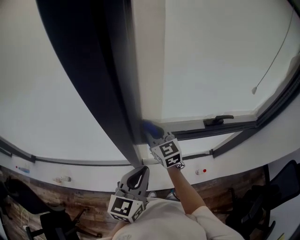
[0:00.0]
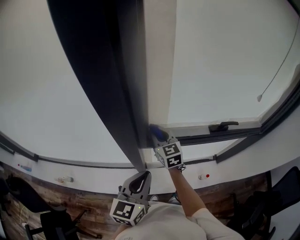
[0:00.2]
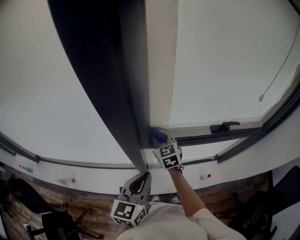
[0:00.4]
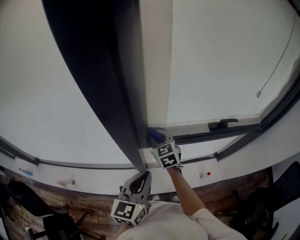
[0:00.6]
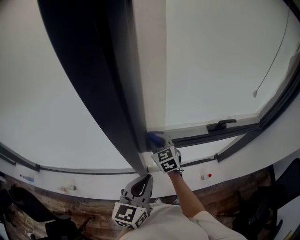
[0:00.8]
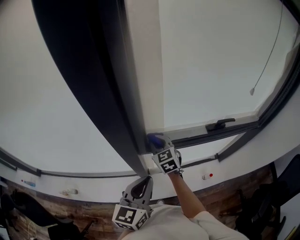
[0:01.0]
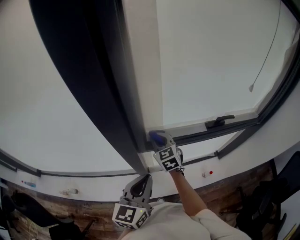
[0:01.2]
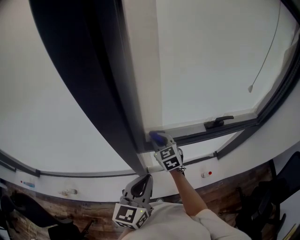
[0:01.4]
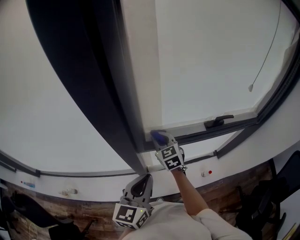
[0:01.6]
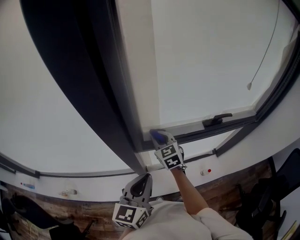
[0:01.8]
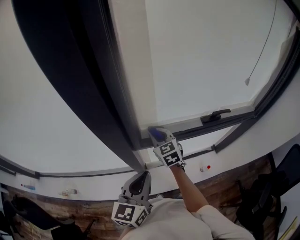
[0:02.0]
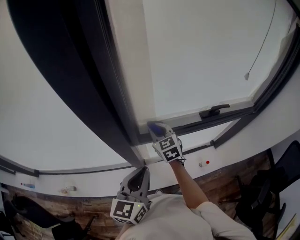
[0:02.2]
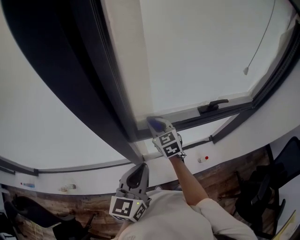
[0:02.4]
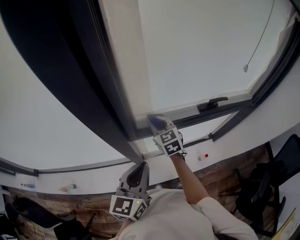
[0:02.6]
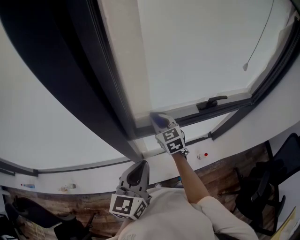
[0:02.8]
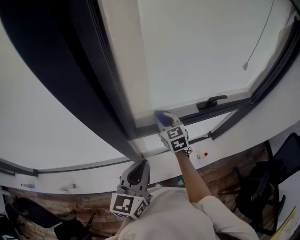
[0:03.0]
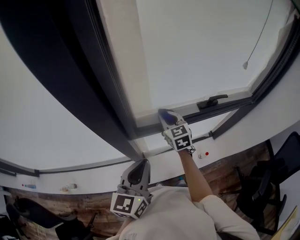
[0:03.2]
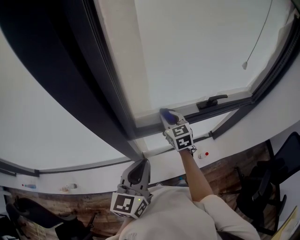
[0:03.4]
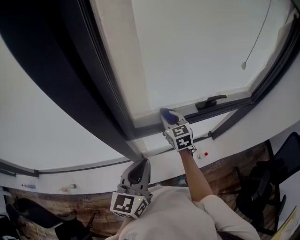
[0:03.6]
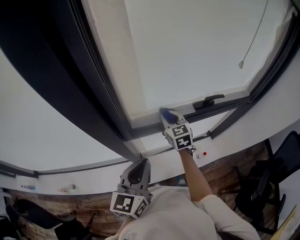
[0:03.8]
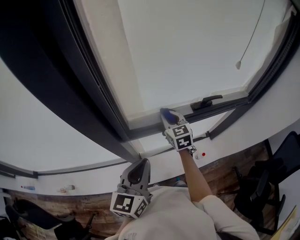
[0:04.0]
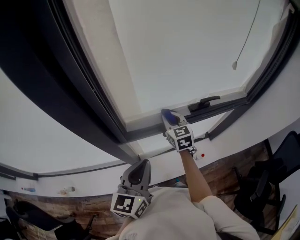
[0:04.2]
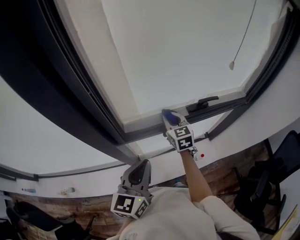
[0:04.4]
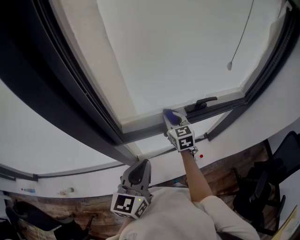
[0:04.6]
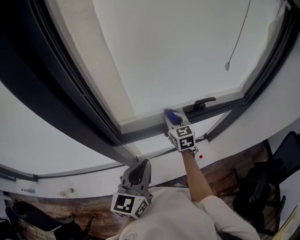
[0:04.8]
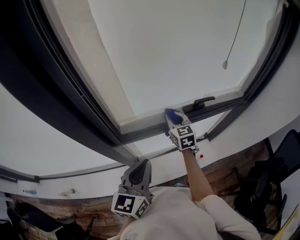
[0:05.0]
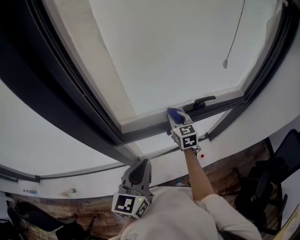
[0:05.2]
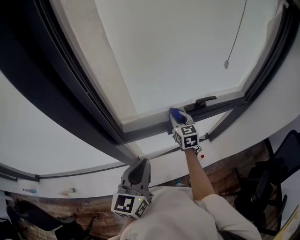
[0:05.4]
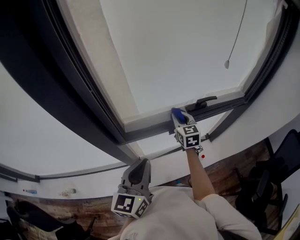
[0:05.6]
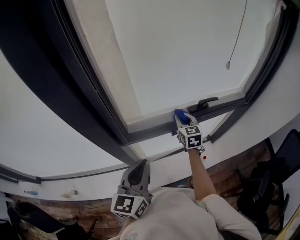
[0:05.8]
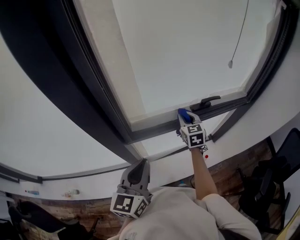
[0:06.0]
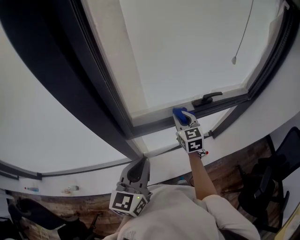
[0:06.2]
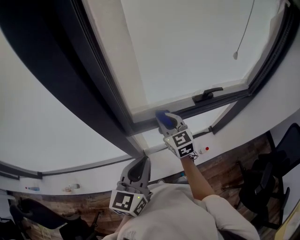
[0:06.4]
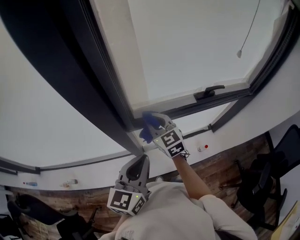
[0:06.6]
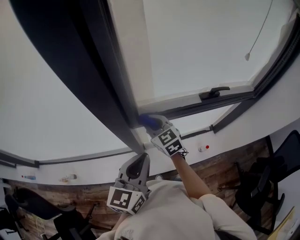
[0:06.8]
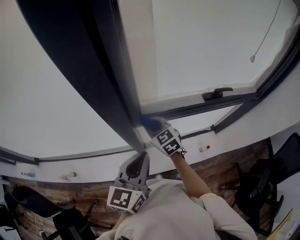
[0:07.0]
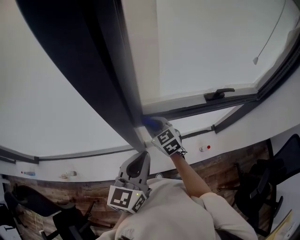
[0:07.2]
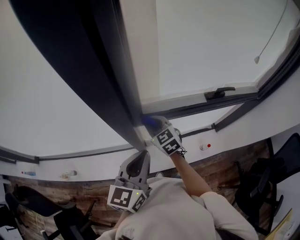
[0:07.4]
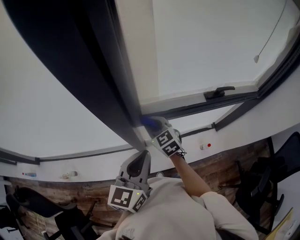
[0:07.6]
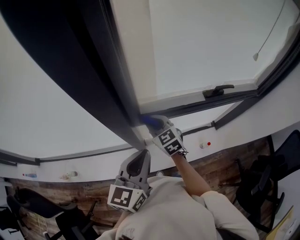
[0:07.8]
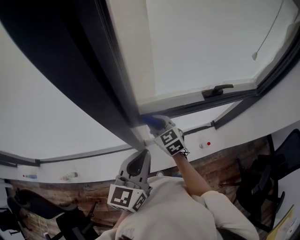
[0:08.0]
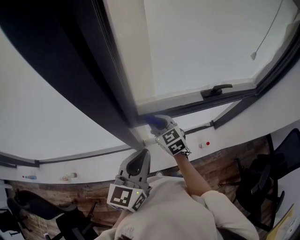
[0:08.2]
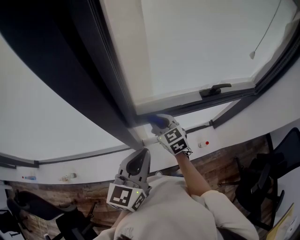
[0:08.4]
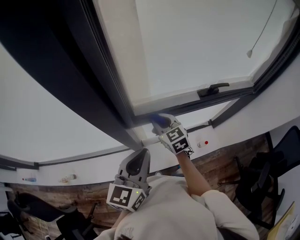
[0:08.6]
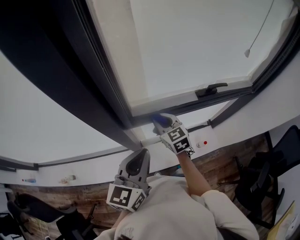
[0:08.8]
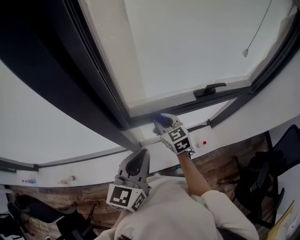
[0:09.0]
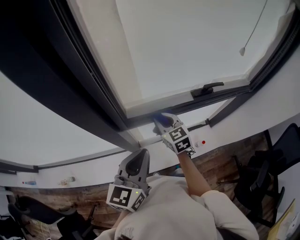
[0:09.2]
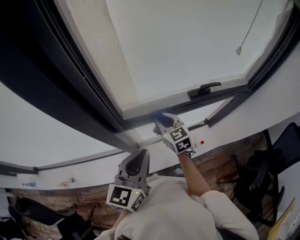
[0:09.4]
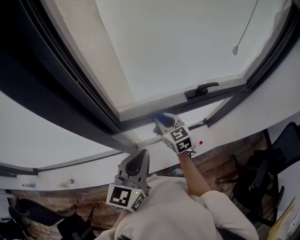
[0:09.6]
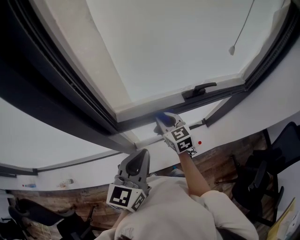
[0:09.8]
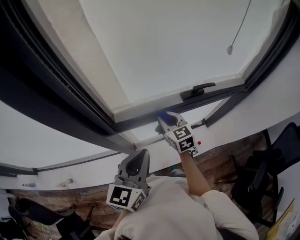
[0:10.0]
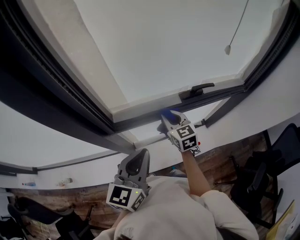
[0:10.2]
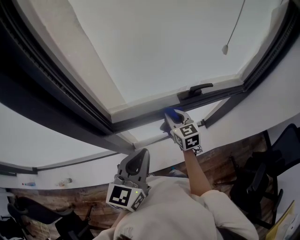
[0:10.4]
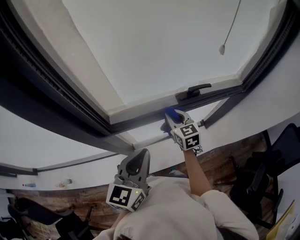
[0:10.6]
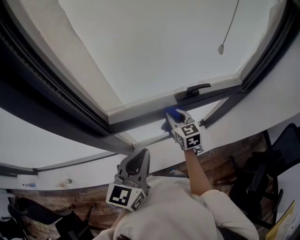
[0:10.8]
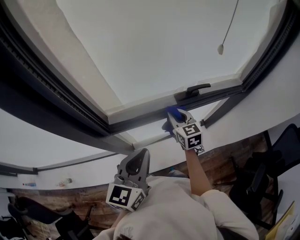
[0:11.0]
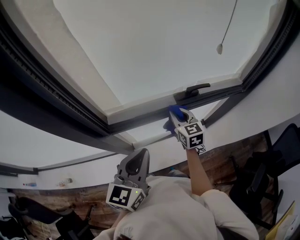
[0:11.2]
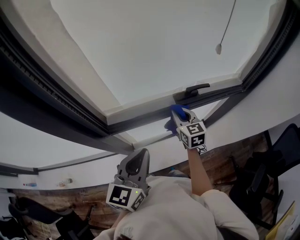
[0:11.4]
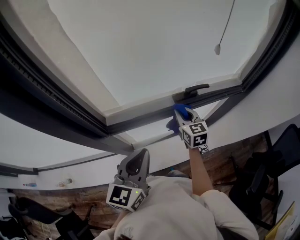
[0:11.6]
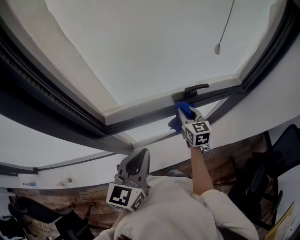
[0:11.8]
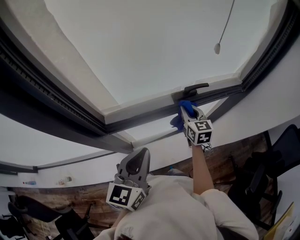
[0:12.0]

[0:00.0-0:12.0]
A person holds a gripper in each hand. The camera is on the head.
0:00.0 to 0:01.6: The right gripper goes approximately 5 cm downward.
0:01.6 to 0:03.0: The right gripper moves to the right, some 5 cm.
0:03.0 to 0:04.4: The left gripper shifts about 5 cm to the right, while the right gripper goes roughly 10 cm to the right.
0:04.4 to 0:06.0: The right gripper moves to the right, approximately 5 cm.
0:06.0 to 0:07.6: The right gripper heads to the left, covering about 25 cm, and turns by some 30 degrees.
0:07.6 to 0:09.0: The right gripper heads to the right, covering roughly 10 cm.
0:09.0 to 0:10.4: The left gripper heads to the right, covering roughly 10 cm; the right gripper travels to the right by approximately 15 cm.
0:10.4 to 0:12.0: The right gripper heads to the right, covering some 10 cm.

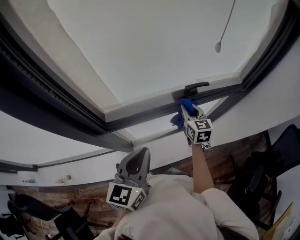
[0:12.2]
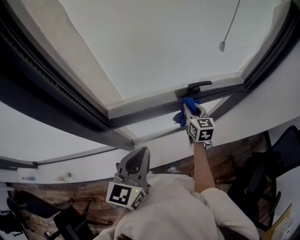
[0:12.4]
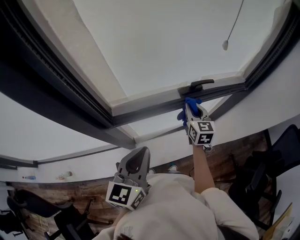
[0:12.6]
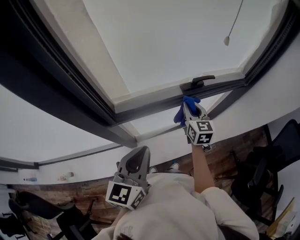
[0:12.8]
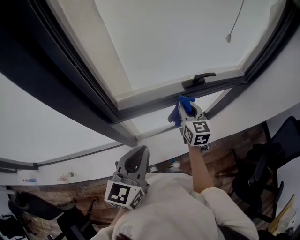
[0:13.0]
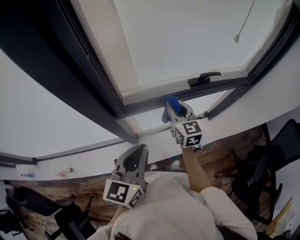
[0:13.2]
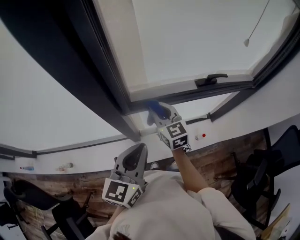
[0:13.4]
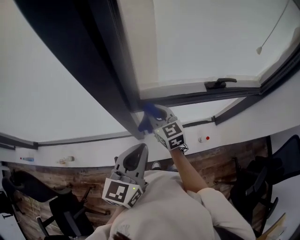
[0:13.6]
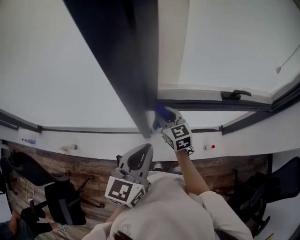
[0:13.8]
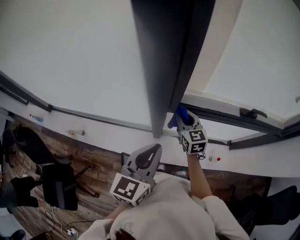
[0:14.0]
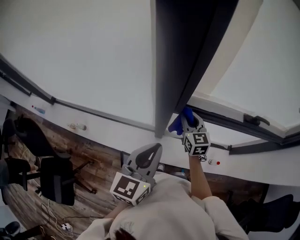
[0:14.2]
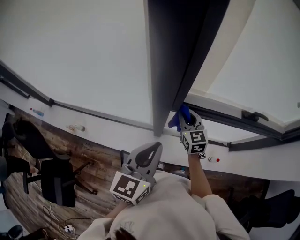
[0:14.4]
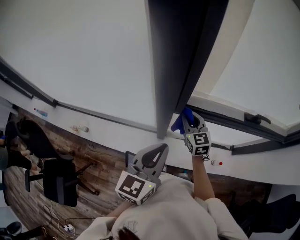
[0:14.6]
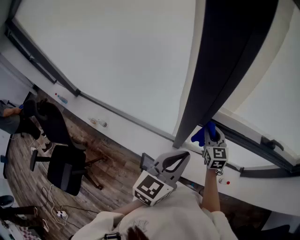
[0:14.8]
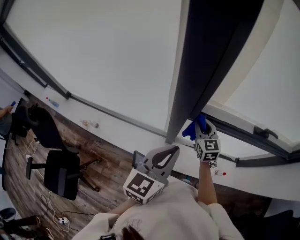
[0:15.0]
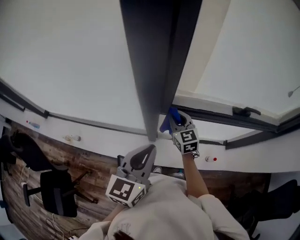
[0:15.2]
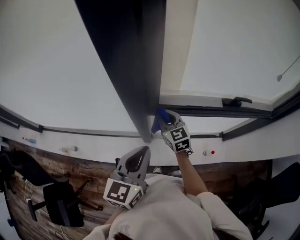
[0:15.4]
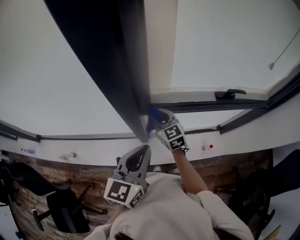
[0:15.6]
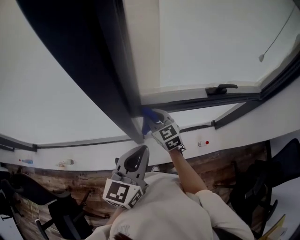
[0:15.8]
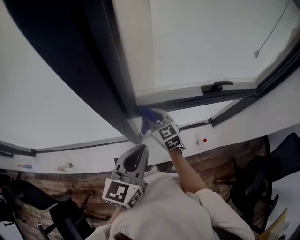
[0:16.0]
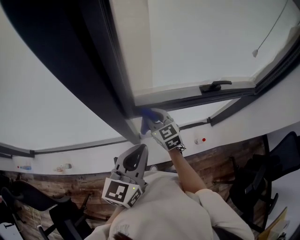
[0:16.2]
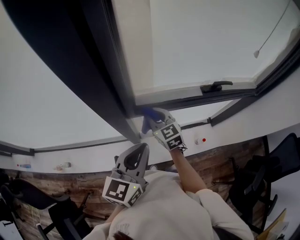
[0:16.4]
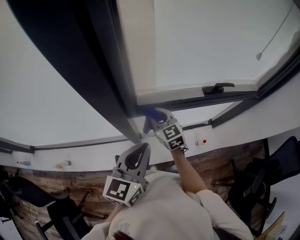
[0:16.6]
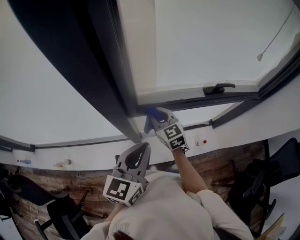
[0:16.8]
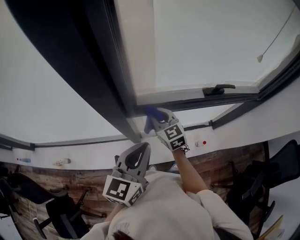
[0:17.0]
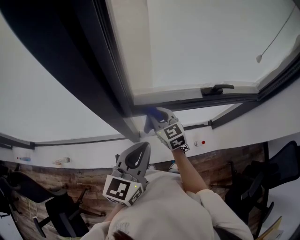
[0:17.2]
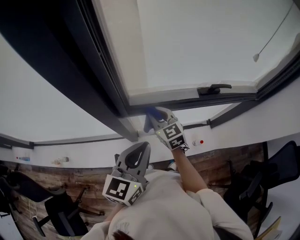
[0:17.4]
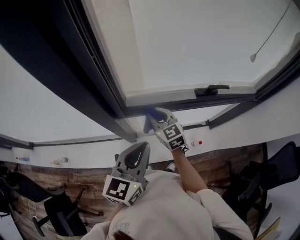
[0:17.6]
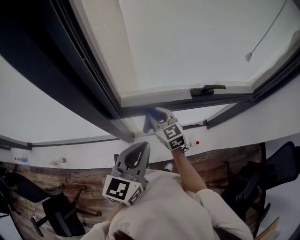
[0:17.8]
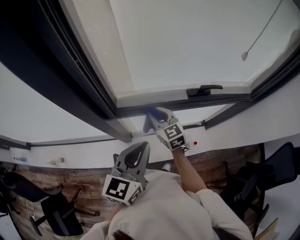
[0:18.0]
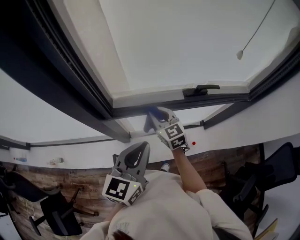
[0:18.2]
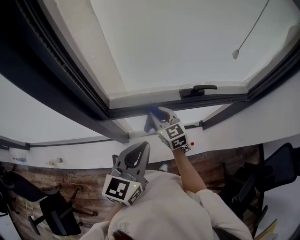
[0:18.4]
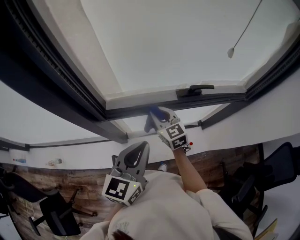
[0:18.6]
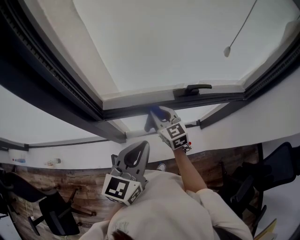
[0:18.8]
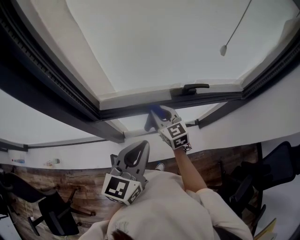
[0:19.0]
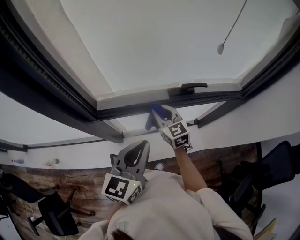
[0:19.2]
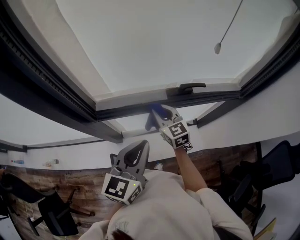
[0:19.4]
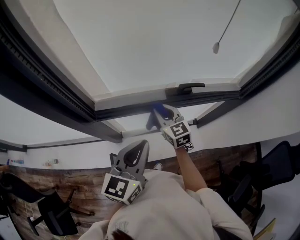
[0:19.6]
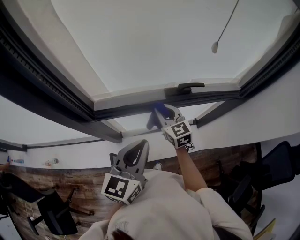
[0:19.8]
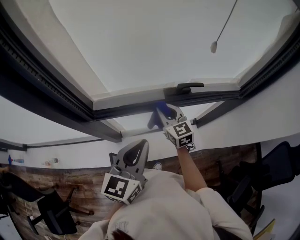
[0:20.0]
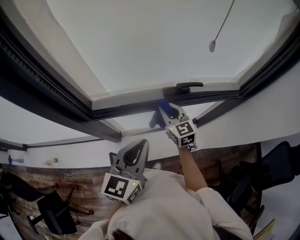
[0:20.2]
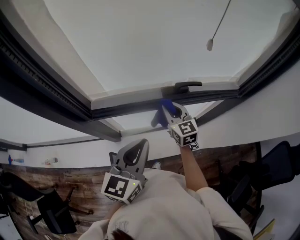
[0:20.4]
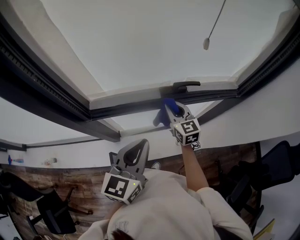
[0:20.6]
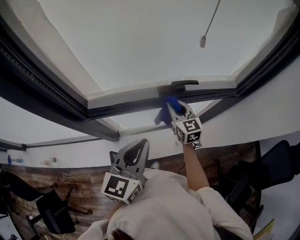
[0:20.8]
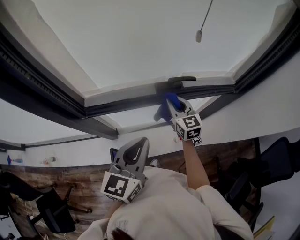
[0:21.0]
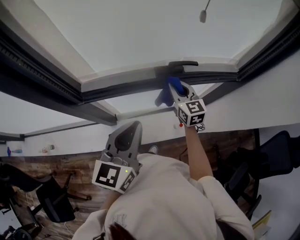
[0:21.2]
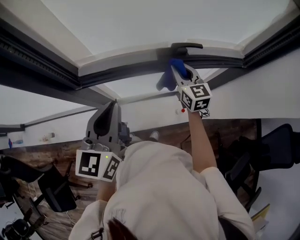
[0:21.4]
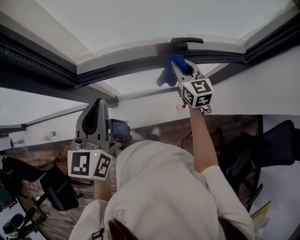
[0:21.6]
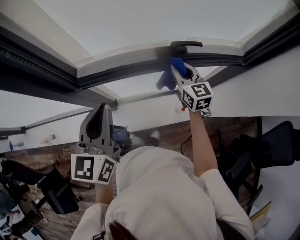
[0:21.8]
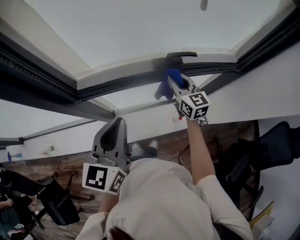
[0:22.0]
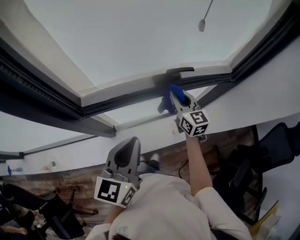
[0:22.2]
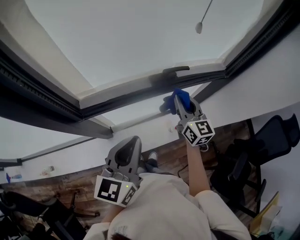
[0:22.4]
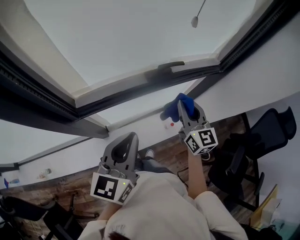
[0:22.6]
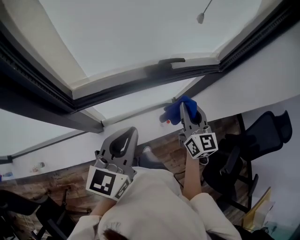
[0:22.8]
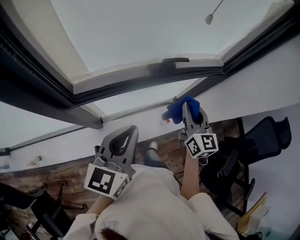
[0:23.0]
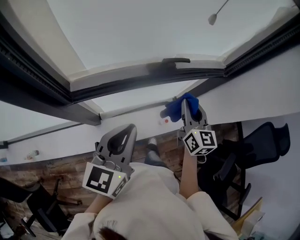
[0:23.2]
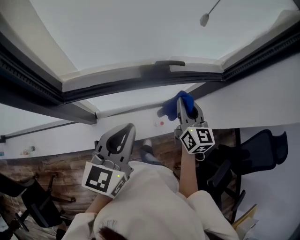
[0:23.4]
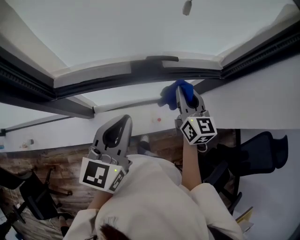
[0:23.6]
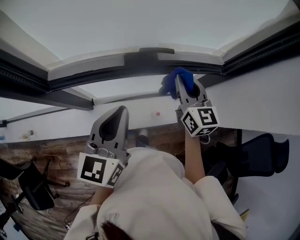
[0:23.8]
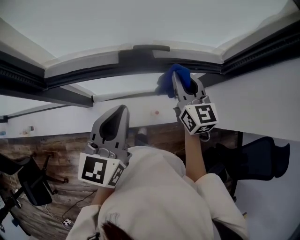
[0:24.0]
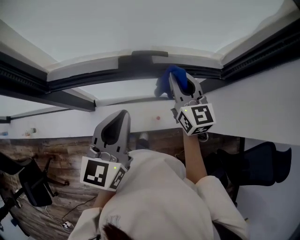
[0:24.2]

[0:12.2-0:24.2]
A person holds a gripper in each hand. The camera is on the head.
0:12.2 to 0:13.8: The left gripper goes approximately 15 cm to the left and backward; the right gripper is displaced to the left by about 35 cm, and changes its angle by about 30 degrees.
0:13.8 to 0:15.2: The grippers make only small movements.
0:15.2 to 0:16.6: Both grippers travel together to the right, roughly 5 cm.
0:16.6 to 0:18.2: Both grippers travel together to the right, about 10 cm.
0:18.2 to 0:19.8: Both grippers travel together to the right, about 10 cm.
0:19.8 to 0:21.2: The right gripper heads to the right, covering roughly 10 cm.
0:21.2 to 0:22.6: The right gripper heads backward and upward, covering roughly 15 cm.
0:22.6 to 0:24.2: The right gripper shifts roughly 15 cm forward and to the right; the left gripper goes about 15 cm to the right and forward.
